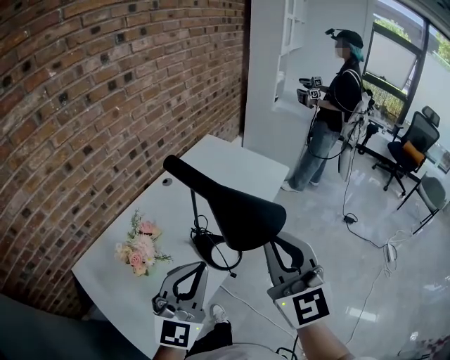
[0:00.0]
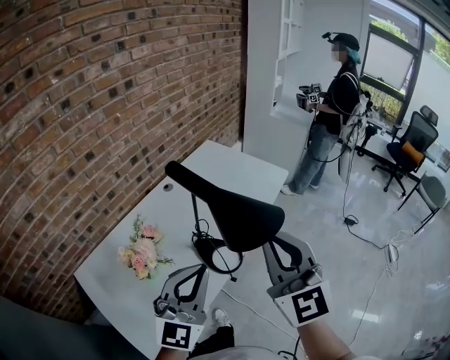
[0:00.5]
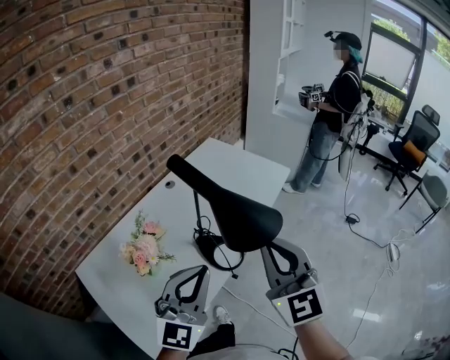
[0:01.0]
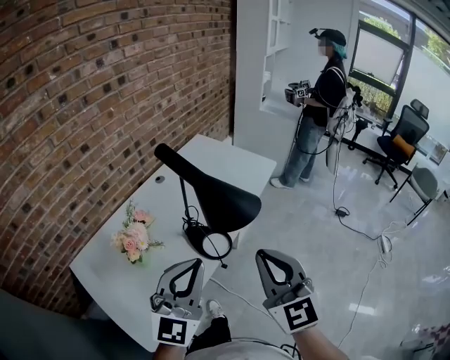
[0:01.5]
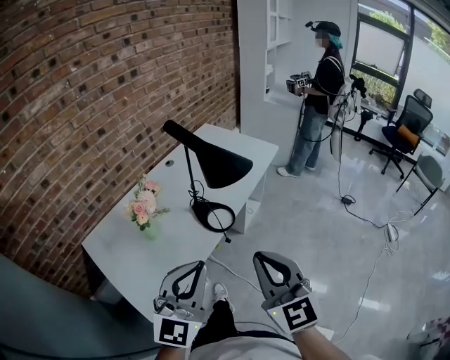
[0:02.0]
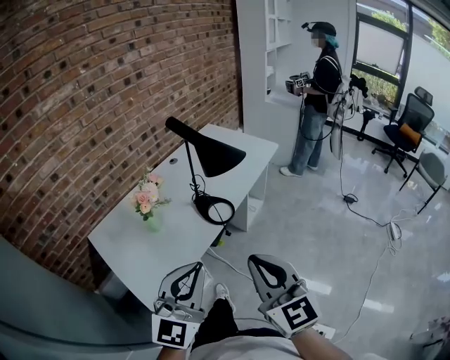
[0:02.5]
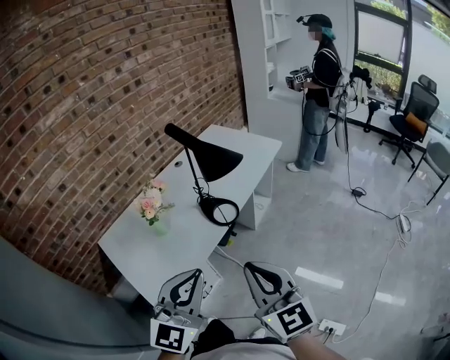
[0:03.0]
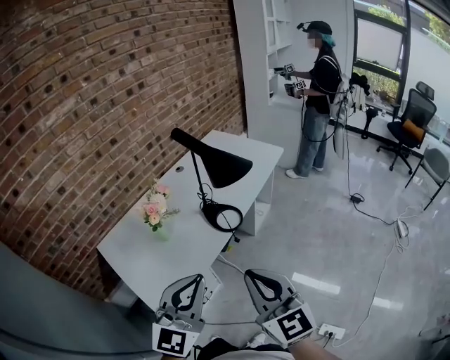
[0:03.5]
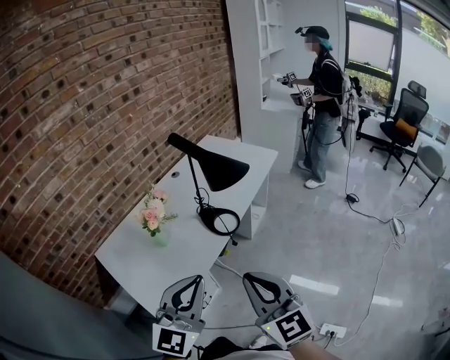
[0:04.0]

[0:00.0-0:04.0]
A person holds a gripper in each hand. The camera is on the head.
0:00.0 to 0:02.0: Both grippers move backward, roughly 20 cm.
0:02.0 to 0:04.0: The two grippers go roughly 5 cm backward.

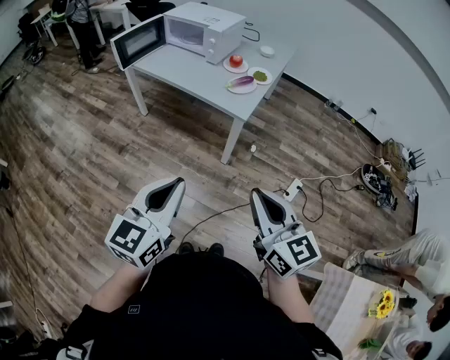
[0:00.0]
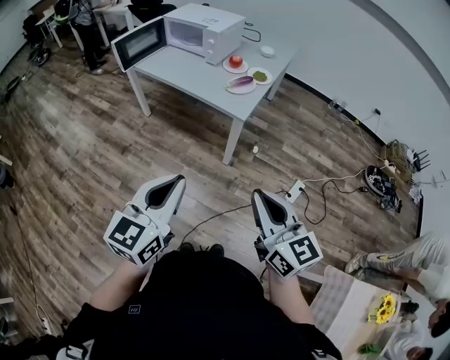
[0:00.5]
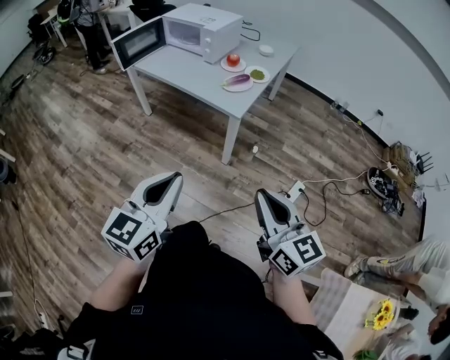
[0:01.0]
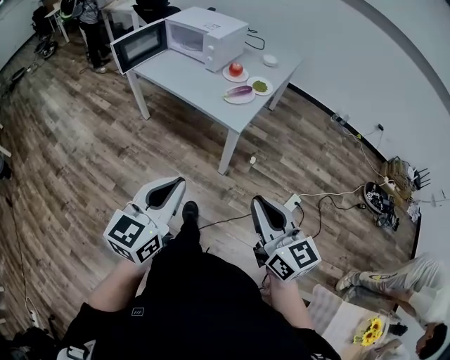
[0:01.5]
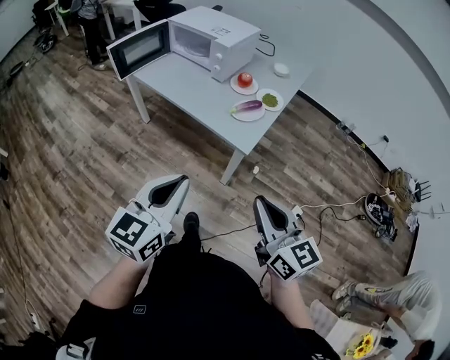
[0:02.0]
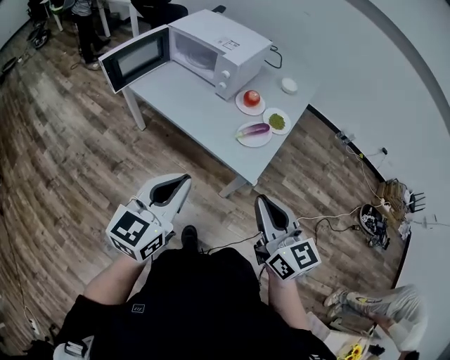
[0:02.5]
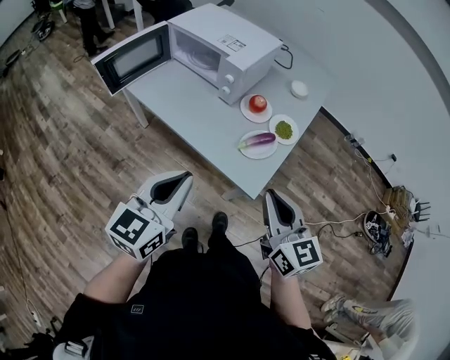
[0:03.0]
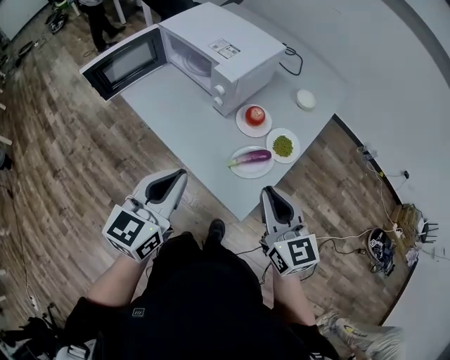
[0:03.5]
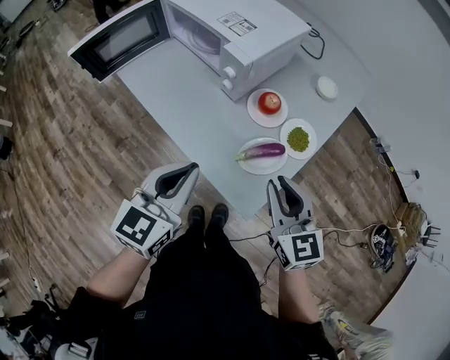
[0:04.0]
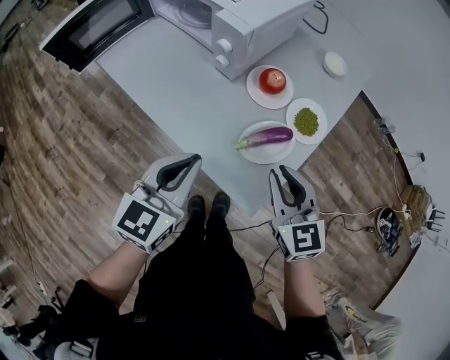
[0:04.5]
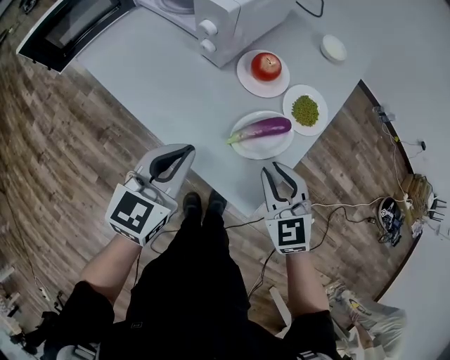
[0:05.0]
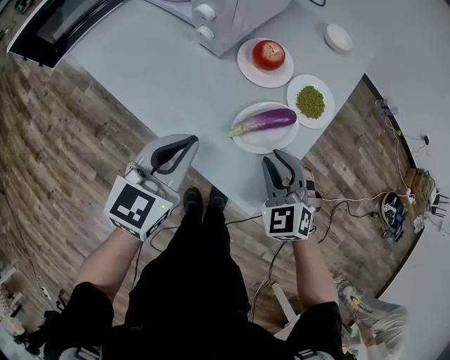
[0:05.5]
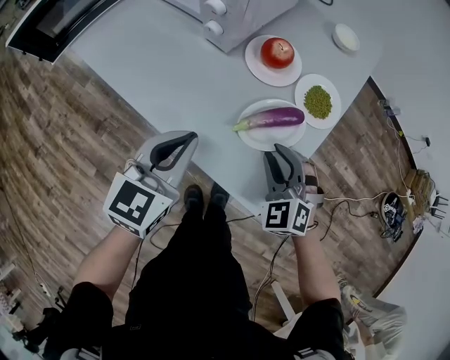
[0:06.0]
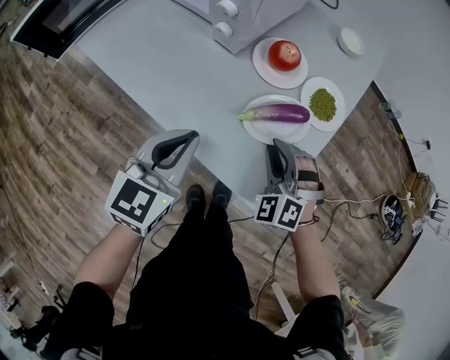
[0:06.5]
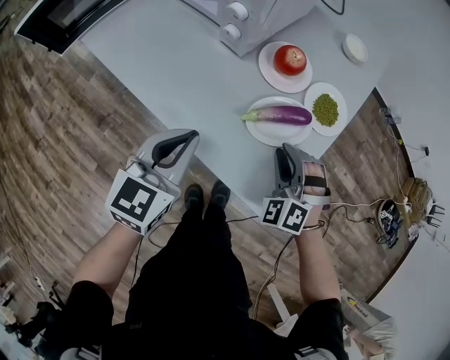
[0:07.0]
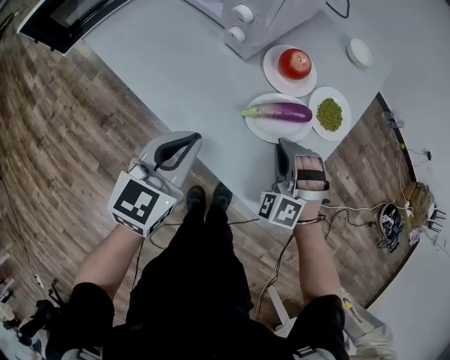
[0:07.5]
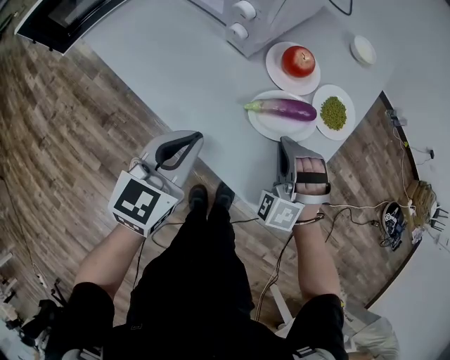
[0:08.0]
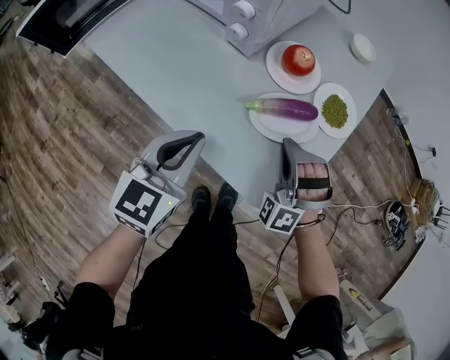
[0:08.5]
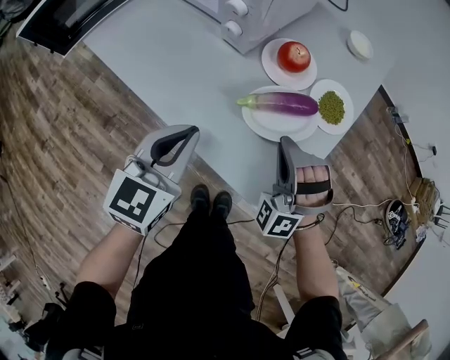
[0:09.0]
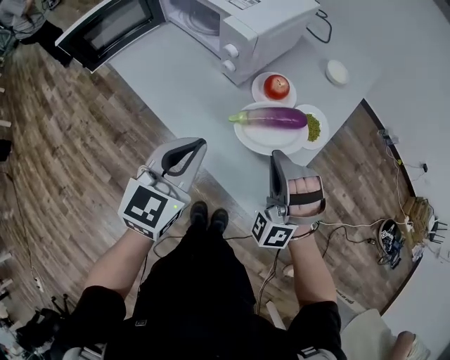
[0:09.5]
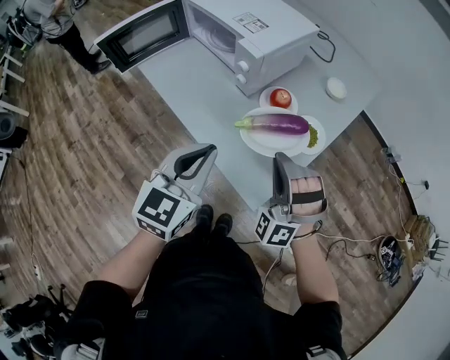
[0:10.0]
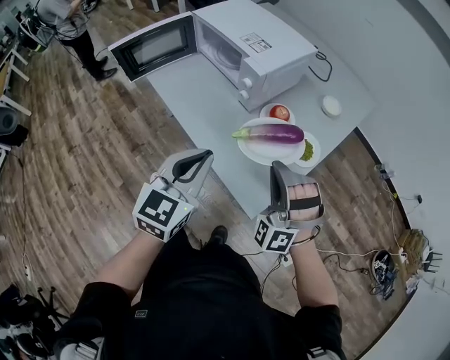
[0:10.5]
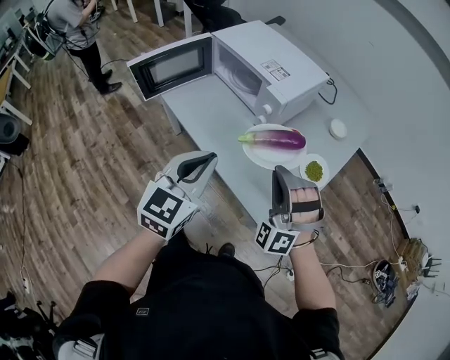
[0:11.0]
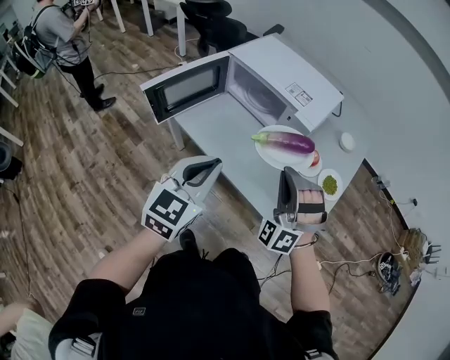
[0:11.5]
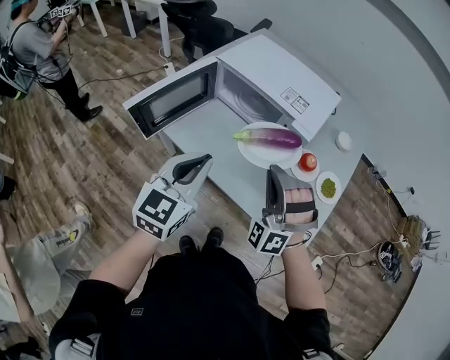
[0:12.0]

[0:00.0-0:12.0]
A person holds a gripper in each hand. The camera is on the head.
0:00.0 to 0:02.0: Both grippers move forward, approximately 20 cm.
0:02.0 to 0:04.0: Both grippers travel together forward, about 40 cm.
0:04.0 to 0:06.0: The grippers both shift downward by about 20 cm. The right gripper twists some 40 degrees counterclockwise, seen from behind.
0:06.0 to 0:08.0: The right gripper changes its angle by approximately 30 degrees, and closes.
0:08.0 to 0:10.0: The grippers both shift upward by approximately 20 cm. The right gripper turns by about 20 degrees.
0:10.0 to 0:12.0: The two grippers go roughly 25 cm to the left.

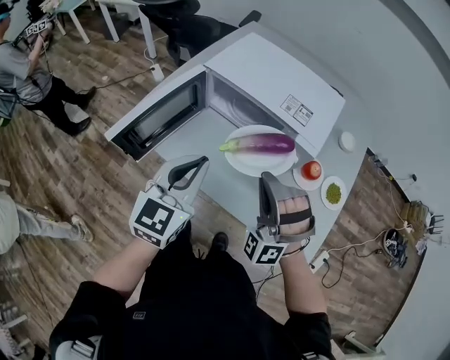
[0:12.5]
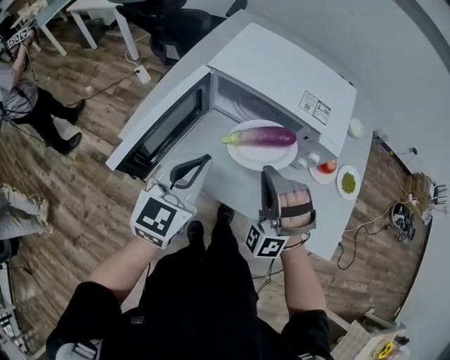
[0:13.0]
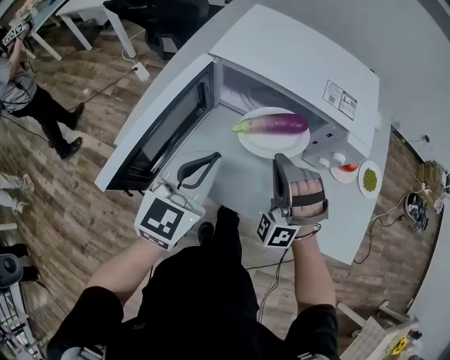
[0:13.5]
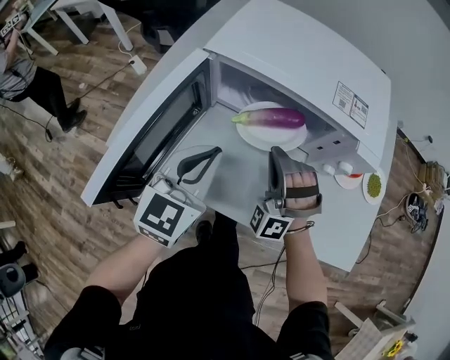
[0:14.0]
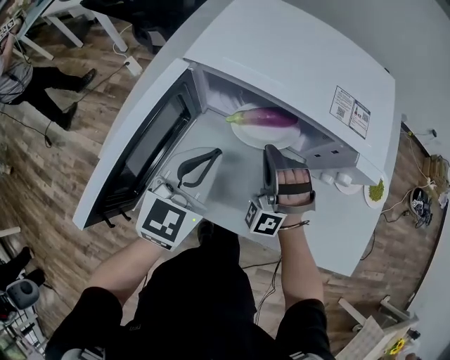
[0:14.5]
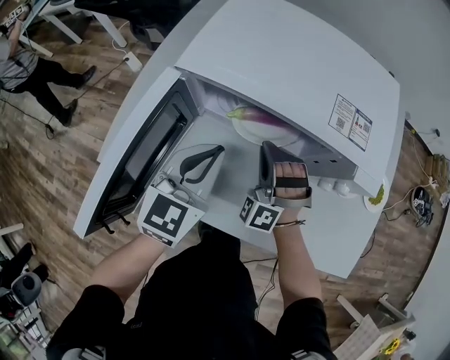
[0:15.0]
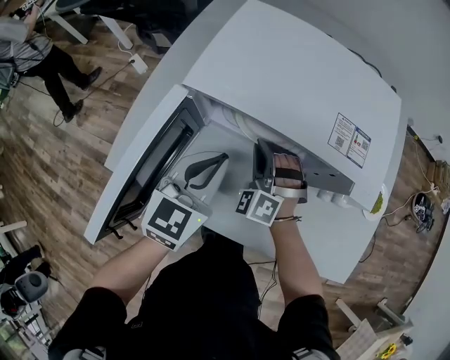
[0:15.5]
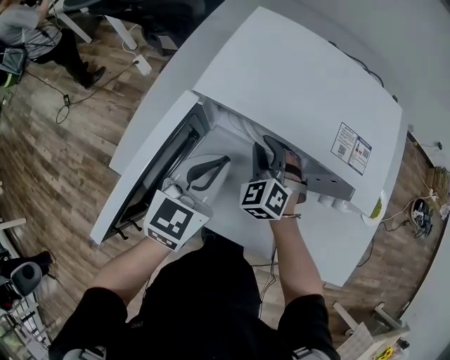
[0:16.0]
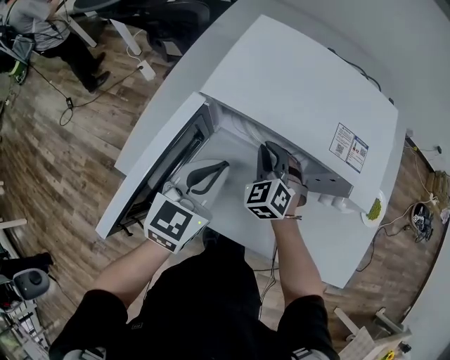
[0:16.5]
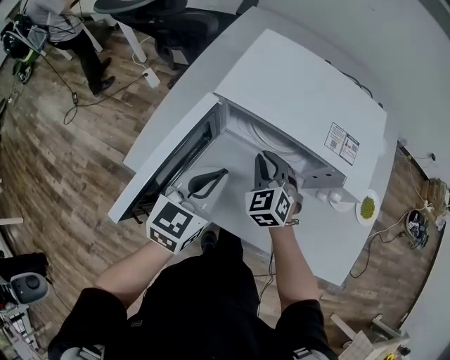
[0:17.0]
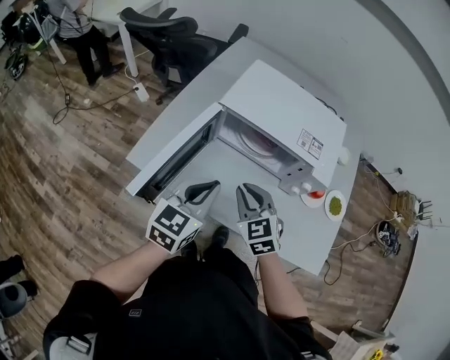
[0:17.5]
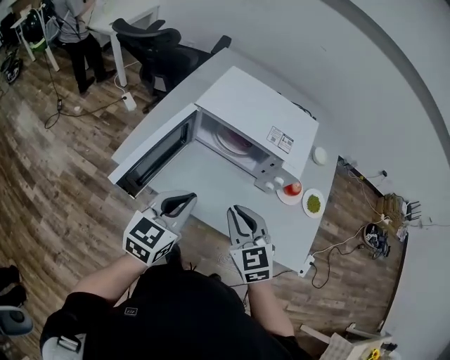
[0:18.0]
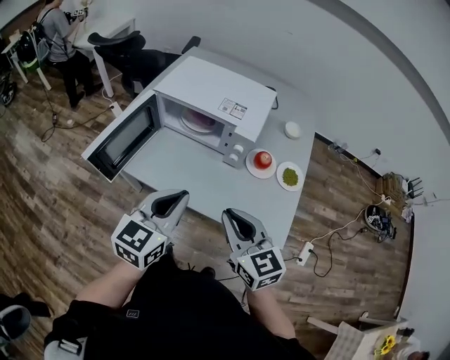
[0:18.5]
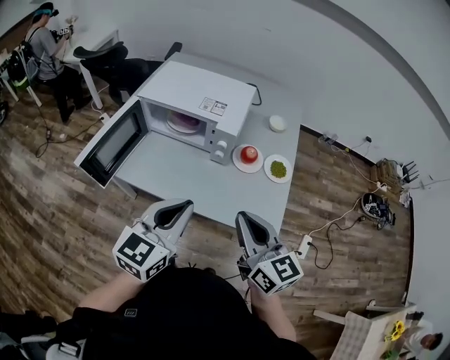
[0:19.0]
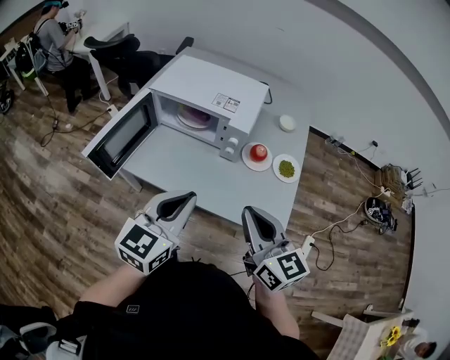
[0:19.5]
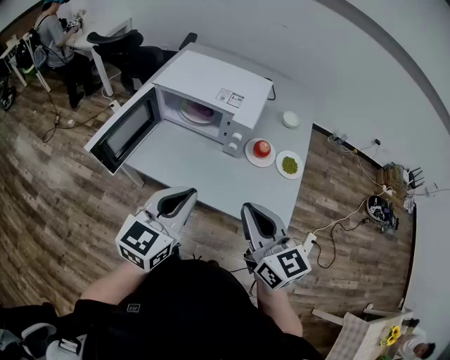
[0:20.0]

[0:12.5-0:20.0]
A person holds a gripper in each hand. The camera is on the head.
0:12.5 to 0:14.5: The grippers both shift downward, forward and to the left by roughly 25 cm.
0:14.5 to 0:16.5: The right gripper moves forward, about 5 cm, and rotates about 50 degrees.
0:16.5 to 0:18.0: The right gripper heads backward and upward, covering roughly 30 cm, and swivels roughly 30 degrees, while the left gripper heads backward and upward, covering about 20 cm.
0:18.0 to 0:20.0: The left gripper moves to the right and backward, roughly 20 cm. The right gripper is displaced to the right, backward and upward by about 25 cm, and changes its angle by approximately 30 degrees.

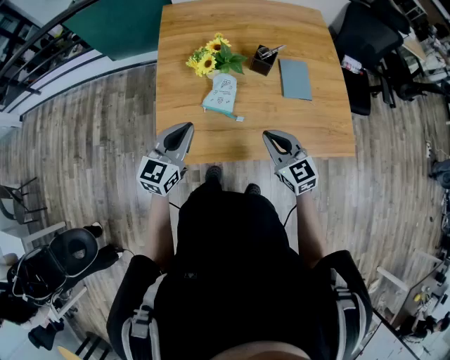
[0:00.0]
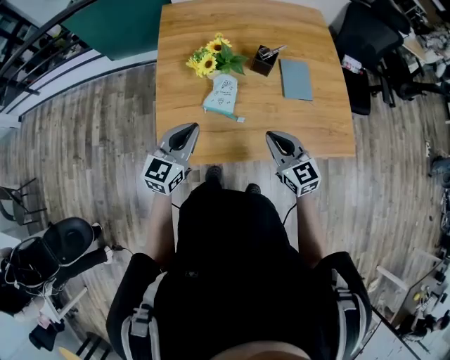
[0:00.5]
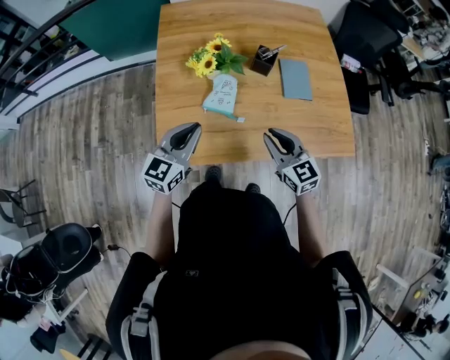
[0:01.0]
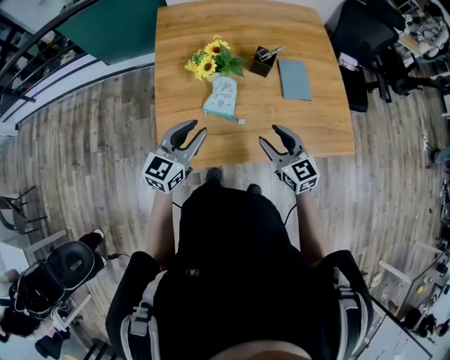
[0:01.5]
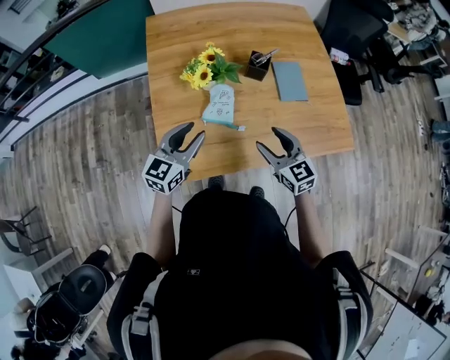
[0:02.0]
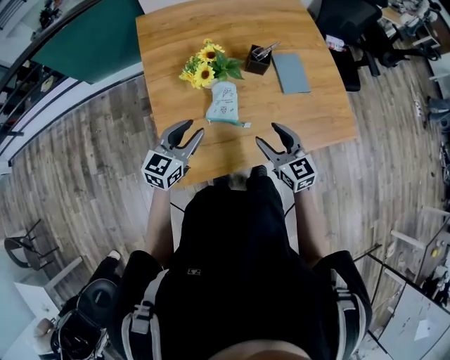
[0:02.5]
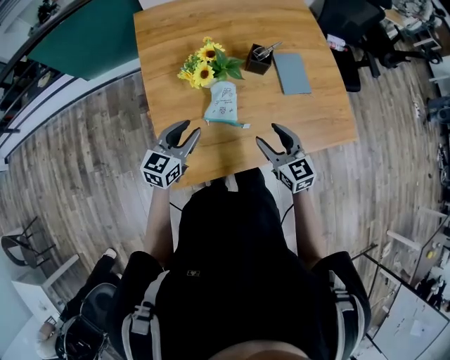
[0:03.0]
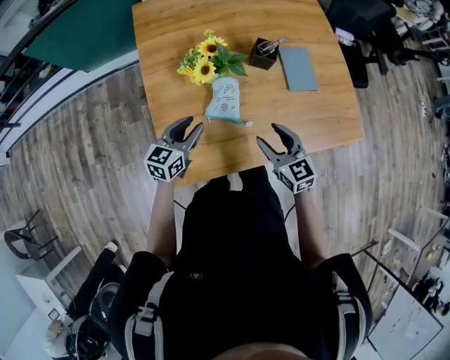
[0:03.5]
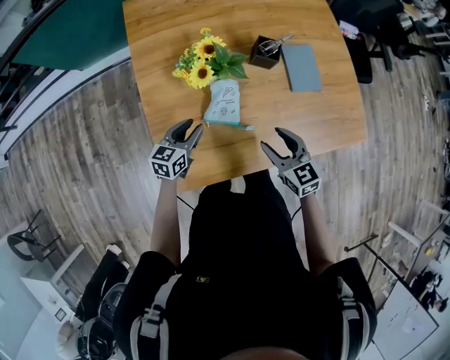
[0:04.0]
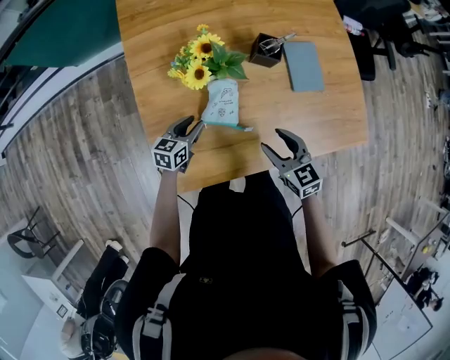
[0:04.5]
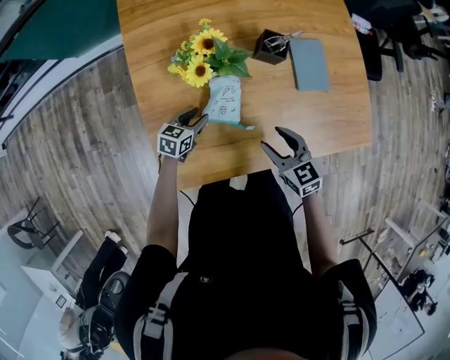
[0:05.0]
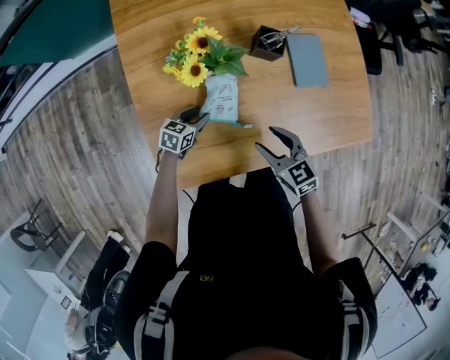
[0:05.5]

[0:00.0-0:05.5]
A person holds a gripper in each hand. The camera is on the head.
0:00.0 to 0:02.0: The left gripper is displaced forward by roughly 5 cm, and opens. The right gripper opens up.
0:02.0 to 0:03.5: The right gripper shifts by about 5 cm. The left gripper travels downward and forward by roughly 10 cm.
0:03.5 to 0:05.5: The left gripper is displaced downward by roughly 20 cm, and changes its angle by approximately 30 degrees; the right gripper goes approximately 5 cm downward.
